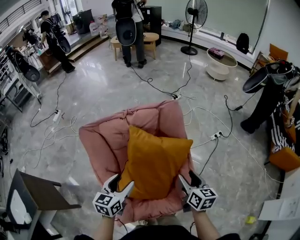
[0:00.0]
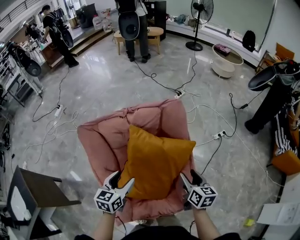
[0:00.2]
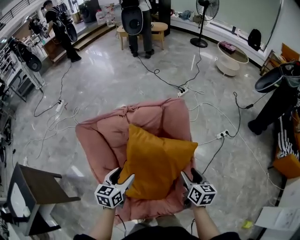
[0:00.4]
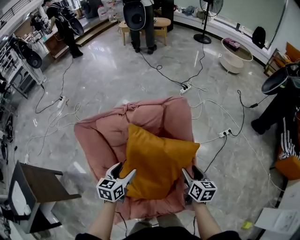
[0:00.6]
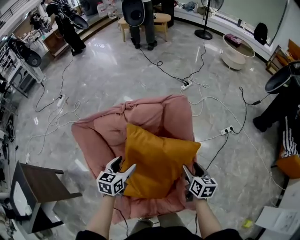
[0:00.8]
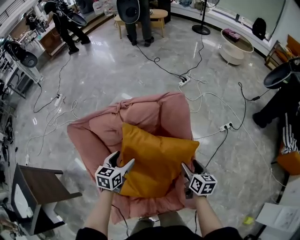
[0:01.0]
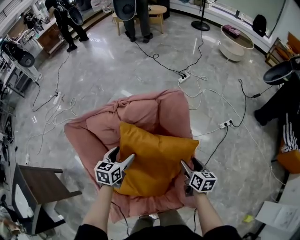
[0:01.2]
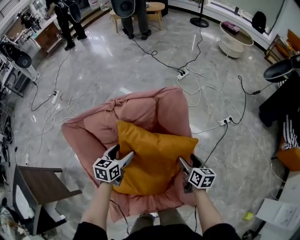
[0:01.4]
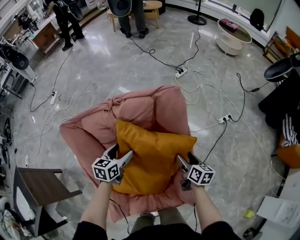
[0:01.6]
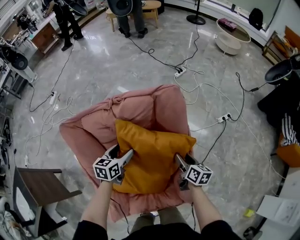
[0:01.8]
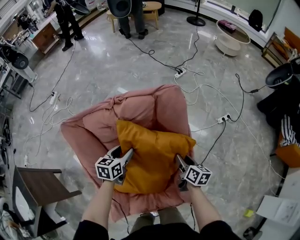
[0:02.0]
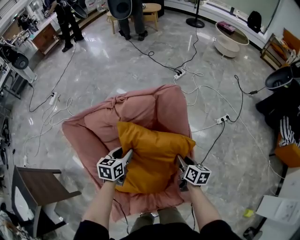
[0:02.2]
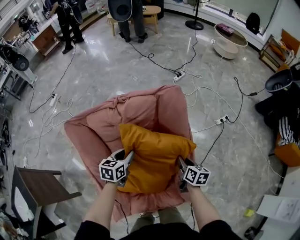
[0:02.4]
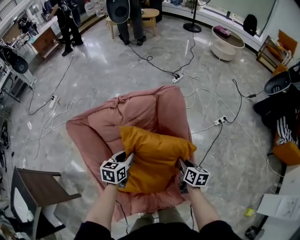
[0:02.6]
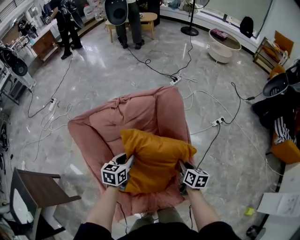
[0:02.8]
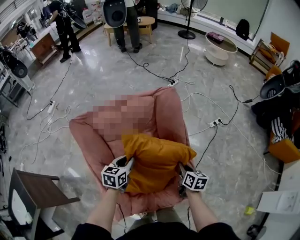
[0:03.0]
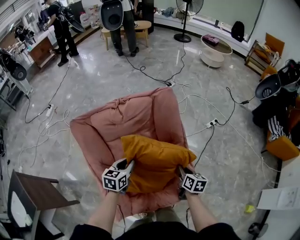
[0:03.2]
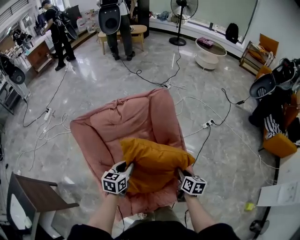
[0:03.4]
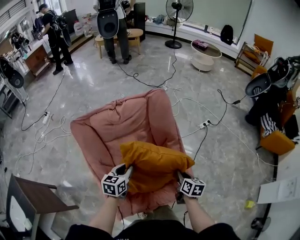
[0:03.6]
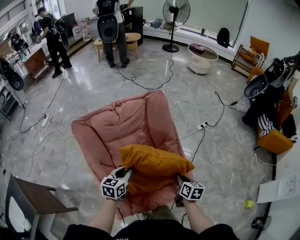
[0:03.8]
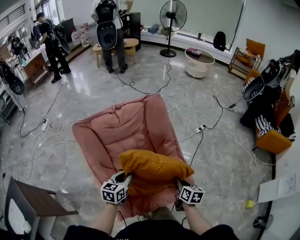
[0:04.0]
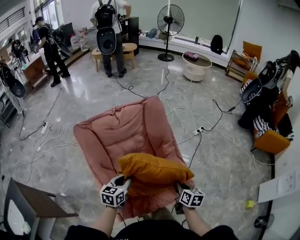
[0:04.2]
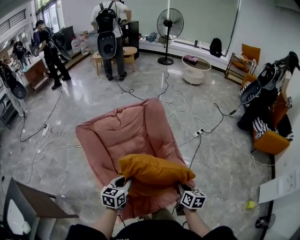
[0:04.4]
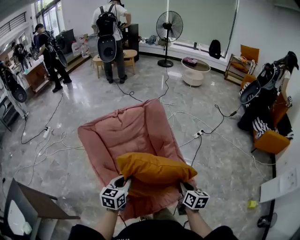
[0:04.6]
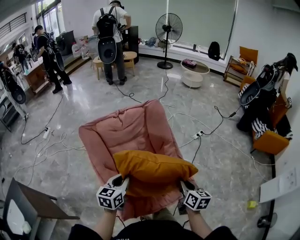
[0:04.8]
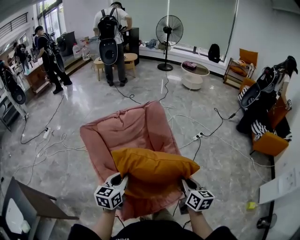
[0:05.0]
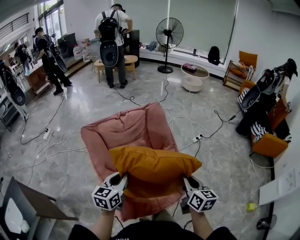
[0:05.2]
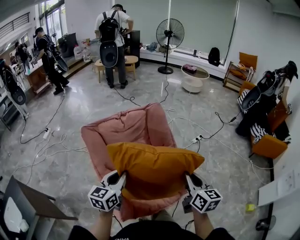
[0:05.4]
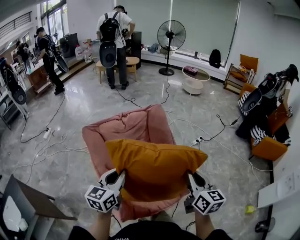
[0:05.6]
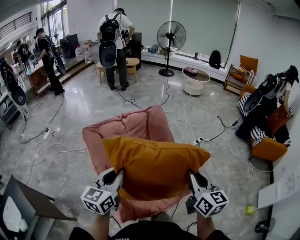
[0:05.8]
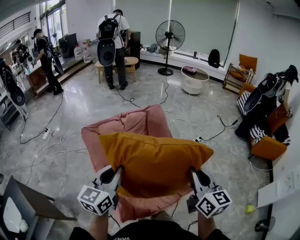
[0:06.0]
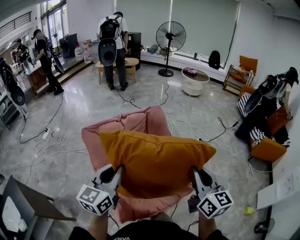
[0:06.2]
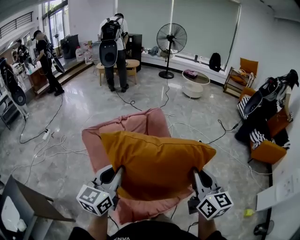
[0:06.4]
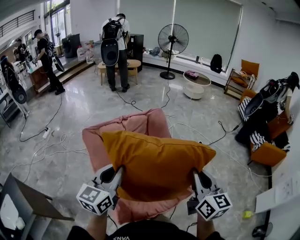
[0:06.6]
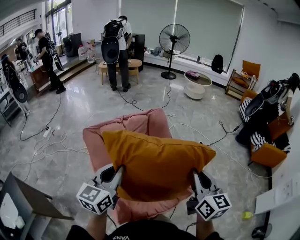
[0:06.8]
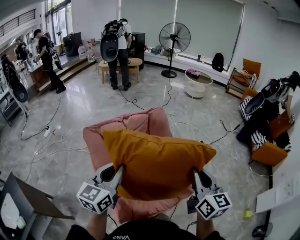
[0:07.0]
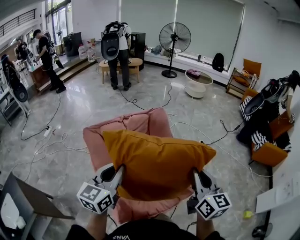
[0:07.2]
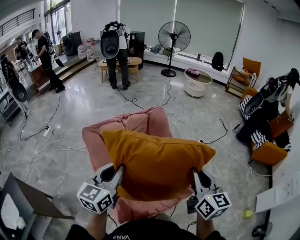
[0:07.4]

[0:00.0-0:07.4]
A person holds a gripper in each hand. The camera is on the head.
0:00.0 to 0:01.4: The right gripper heads downward and forward, covering roughly 20 cm, while the left gripper goes about 20 cm forward and downward.
0:01.4 to 0:03.0: Both grippers move backward, some 10 cm. The right gripper closes its fingers; the left gripper closes its fingers.
0:03.0 to 0:04.4: The right gripper goes about 20 cm backward. The left gripper travels backward and upward by about 20 cm.
0:04.4 to 0:06.0: Both grippers move upward, roughly 25 cm. The left gripper changes its angle by approximately 30 degrees, while the right gripper rotates roughly 40 degrees.
0:06.0 to 0:07.4: The grippers make only small movements.

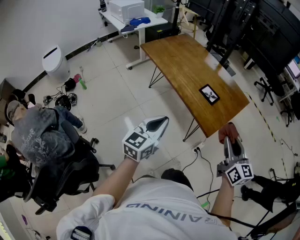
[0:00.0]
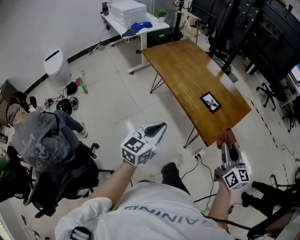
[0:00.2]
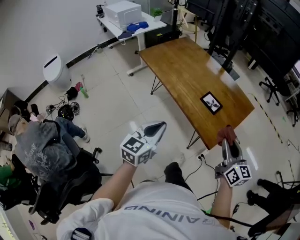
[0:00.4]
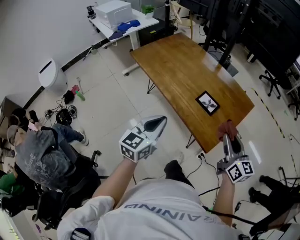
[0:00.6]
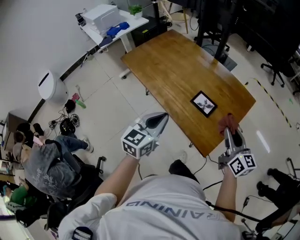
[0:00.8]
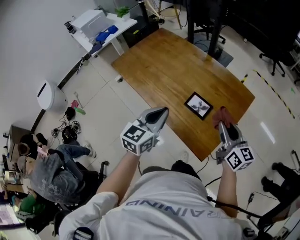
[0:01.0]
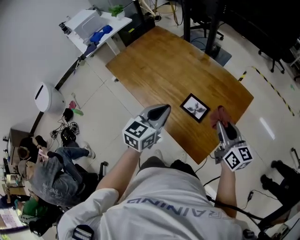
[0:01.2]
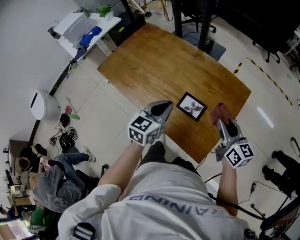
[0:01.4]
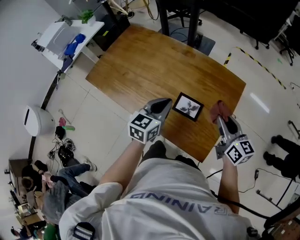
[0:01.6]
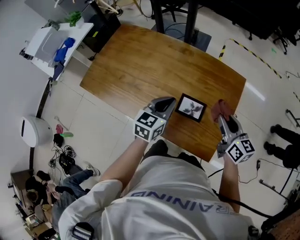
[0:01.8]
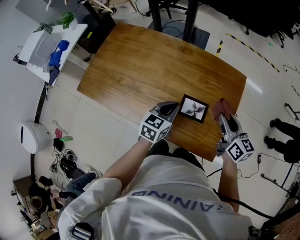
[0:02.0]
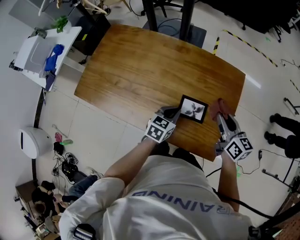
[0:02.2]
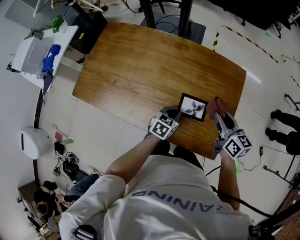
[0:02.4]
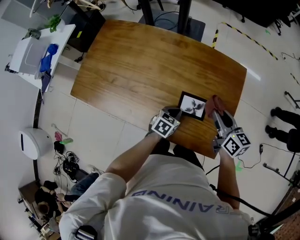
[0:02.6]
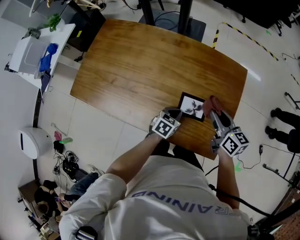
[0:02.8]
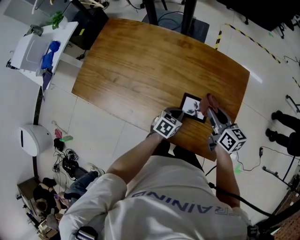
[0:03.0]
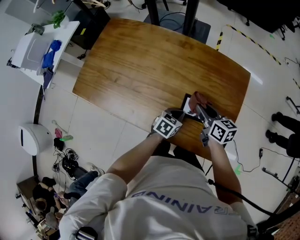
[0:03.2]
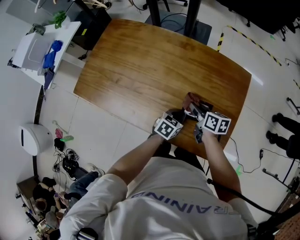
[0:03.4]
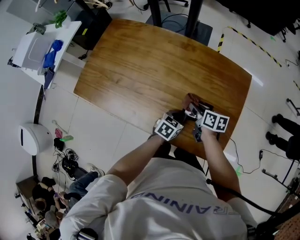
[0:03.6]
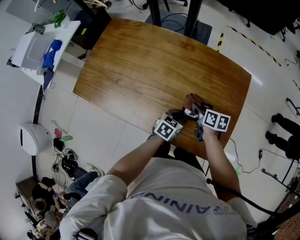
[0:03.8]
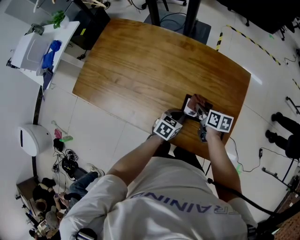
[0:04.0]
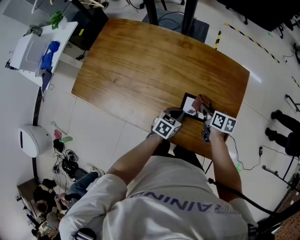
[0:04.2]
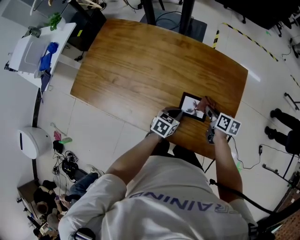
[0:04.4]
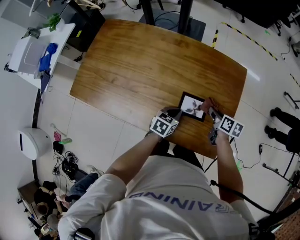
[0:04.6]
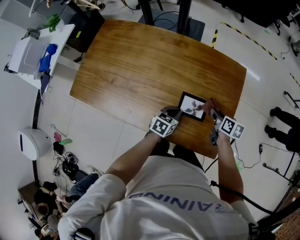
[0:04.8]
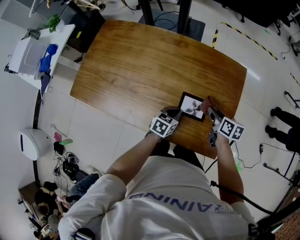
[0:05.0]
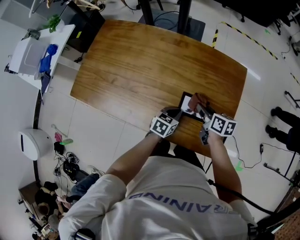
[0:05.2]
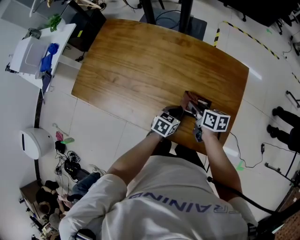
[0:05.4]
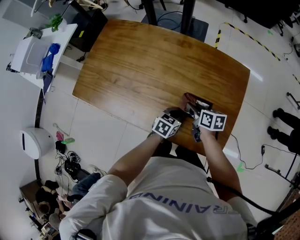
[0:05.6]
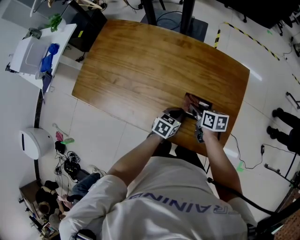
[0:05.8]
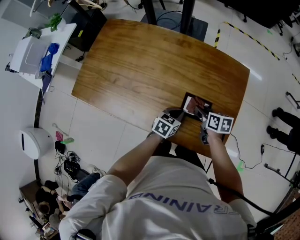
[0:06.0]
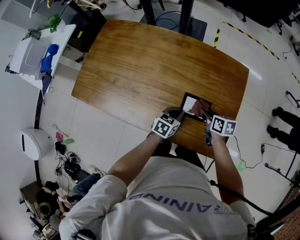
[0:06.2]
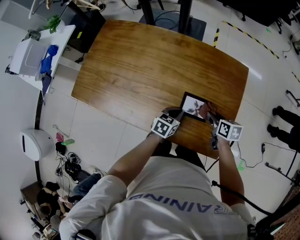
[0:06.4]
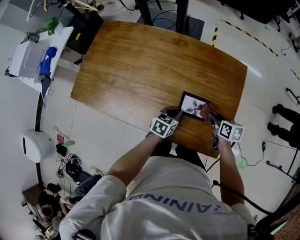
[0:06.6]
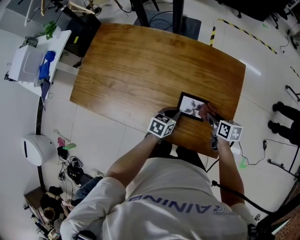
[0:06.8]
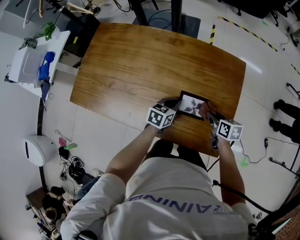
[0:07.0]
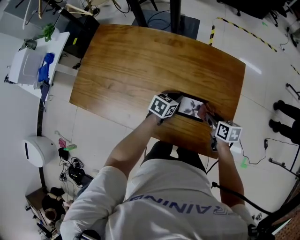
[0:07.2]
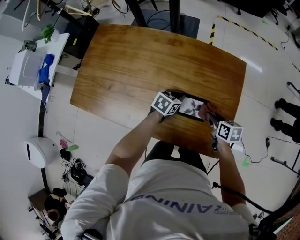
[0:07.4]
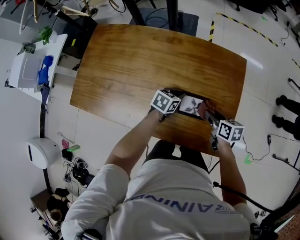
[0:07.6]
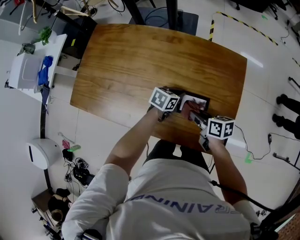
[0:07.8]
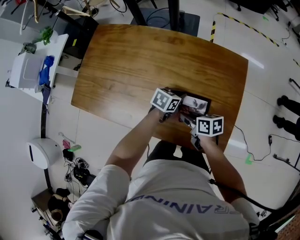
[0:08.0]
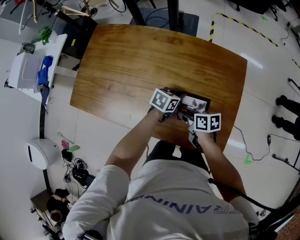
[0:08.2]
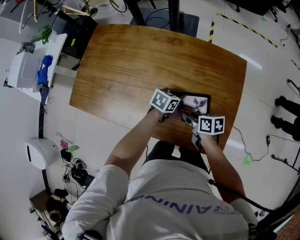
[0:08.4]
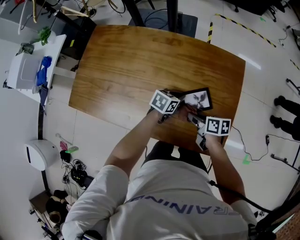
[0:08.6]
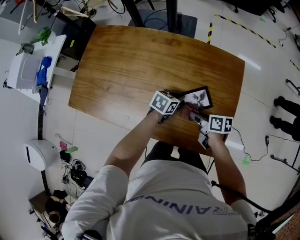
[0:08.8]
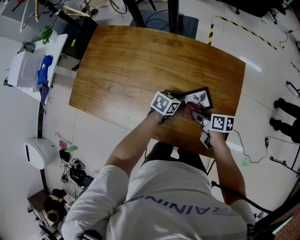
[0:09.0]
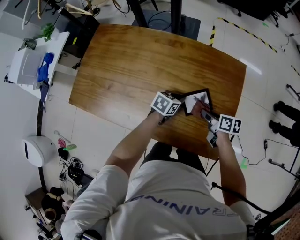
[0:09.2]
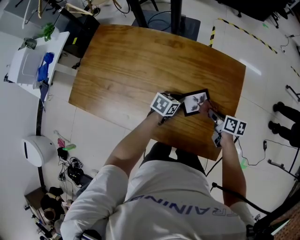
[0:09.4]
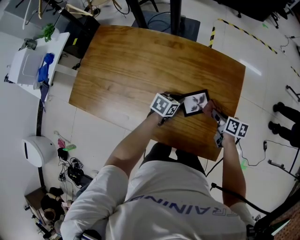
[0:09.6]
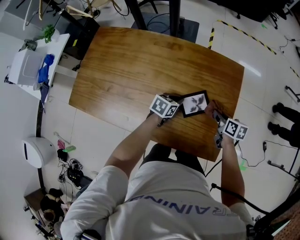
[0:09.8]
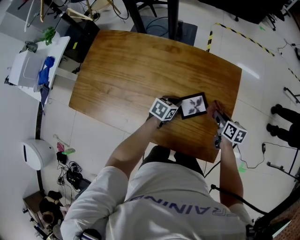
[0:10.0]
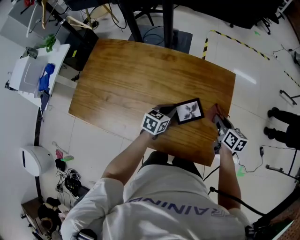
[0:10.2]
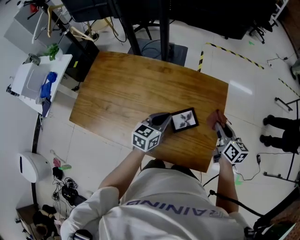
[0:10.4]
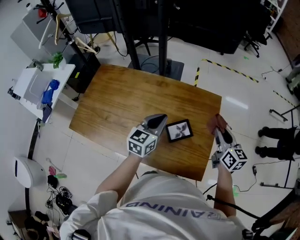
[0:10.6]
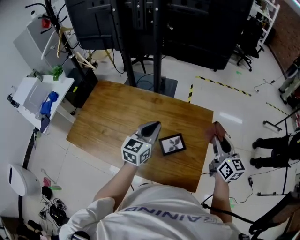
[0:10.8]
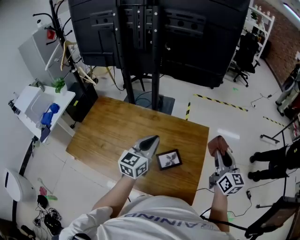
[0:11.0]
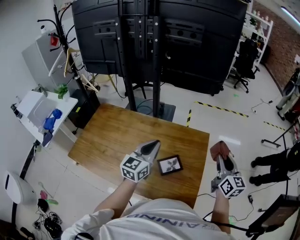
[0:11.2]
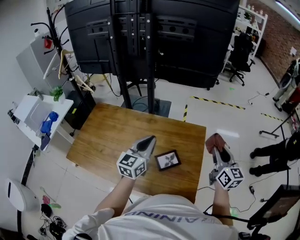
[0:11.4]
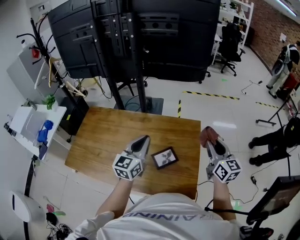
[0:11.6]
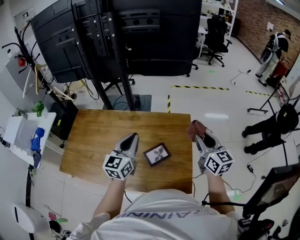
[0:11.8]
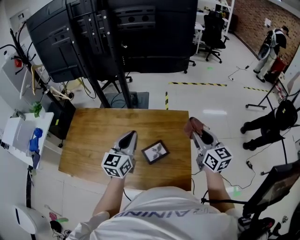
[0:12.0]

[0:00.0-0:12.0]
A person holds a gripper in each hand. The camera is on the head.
0:00.0 to 0:01.6: The two grippers go some 35 cm forward. The left gripper rotates approximately 30 degrees.
0:01.6 to 0:03.0: The right gripper travels downward, to the left and forward by about 15 cm, while the left gripper moves downward, about 20 cm, and changes its angle by approximately 40 degrees.
0:03.0 to 0:04.4: The right gripper is displaced downward by some 10 cm, and swivels about 30 degrees.
0:04.4 to 0:06.0: The right gripper goes approximately 5 cm to the left.
0:06.0 to 0:07.6: The right gripper is displaced to the right by roughly 5 cm, while the left gripper goes some 10 cm forward.
0:07.6 to 0:09.0: The right gripper moves to the left, roughly 5 cm.
0:09.0 to 0:10.4: The right gripper is displaced upward and to the right by roughly 20 cm, and swivels some 40 degrees, while the left gripper travels upward by some 15 cm, and swivels approximately 30 degrees.
0:10.4 to 0:12.0: Both grippers move upward, roughly 15 cm. The right gripper turns by about 20 degrees. Meanwhile the left gripper turns by approximately 20 degrees.

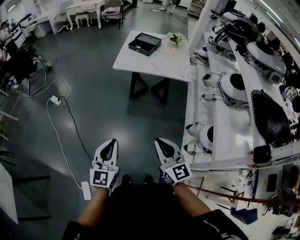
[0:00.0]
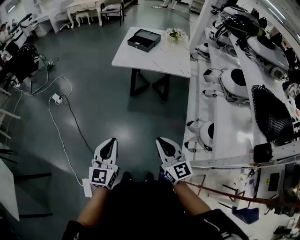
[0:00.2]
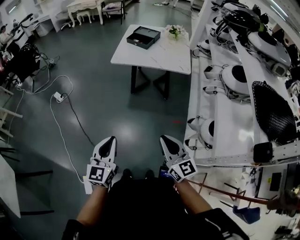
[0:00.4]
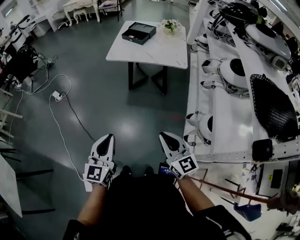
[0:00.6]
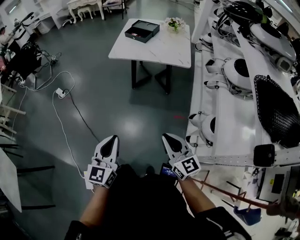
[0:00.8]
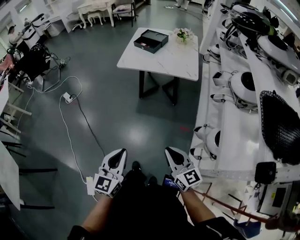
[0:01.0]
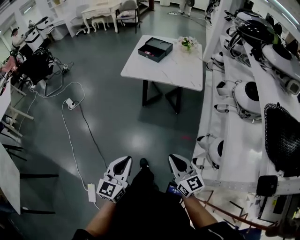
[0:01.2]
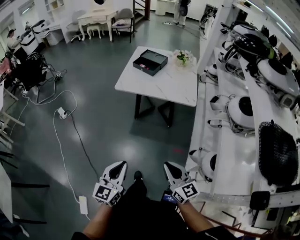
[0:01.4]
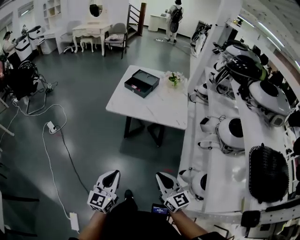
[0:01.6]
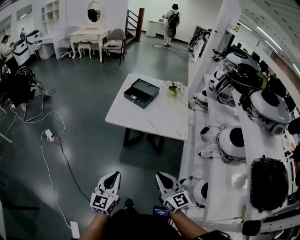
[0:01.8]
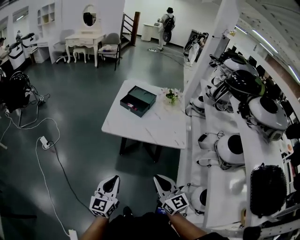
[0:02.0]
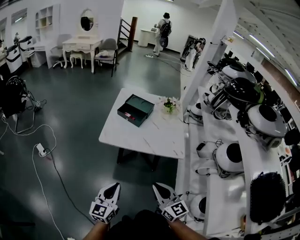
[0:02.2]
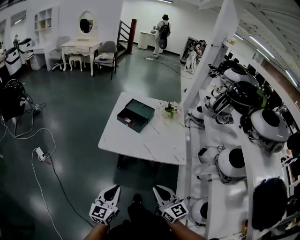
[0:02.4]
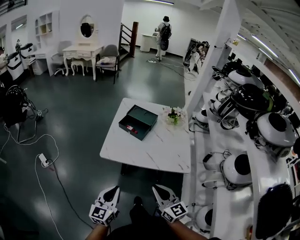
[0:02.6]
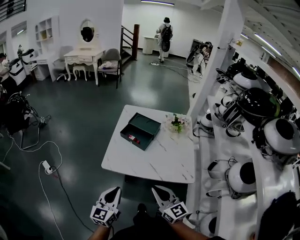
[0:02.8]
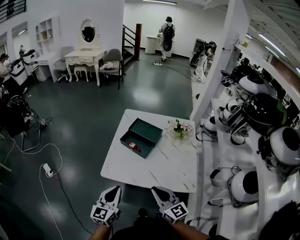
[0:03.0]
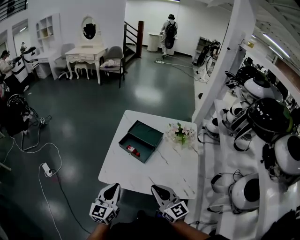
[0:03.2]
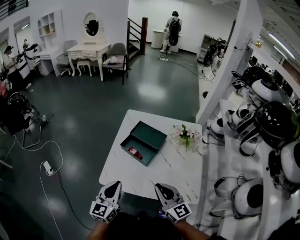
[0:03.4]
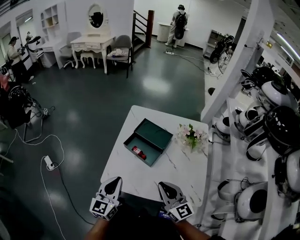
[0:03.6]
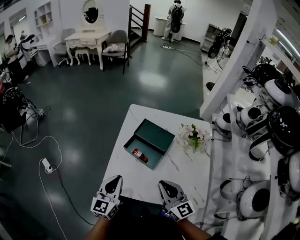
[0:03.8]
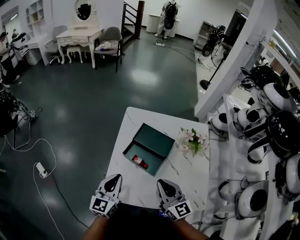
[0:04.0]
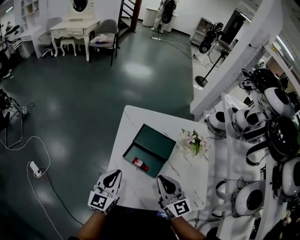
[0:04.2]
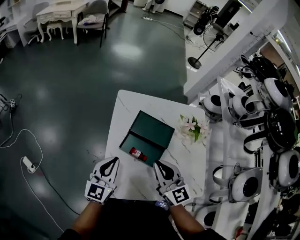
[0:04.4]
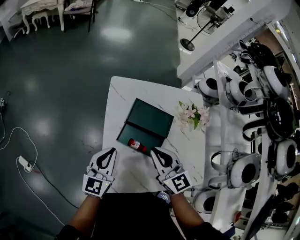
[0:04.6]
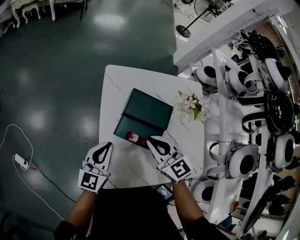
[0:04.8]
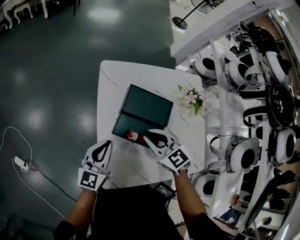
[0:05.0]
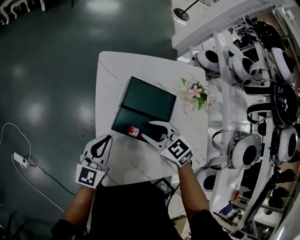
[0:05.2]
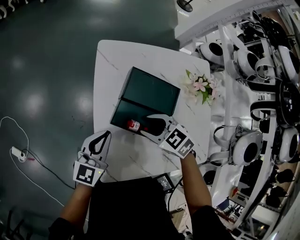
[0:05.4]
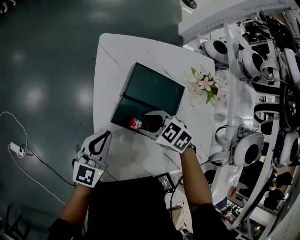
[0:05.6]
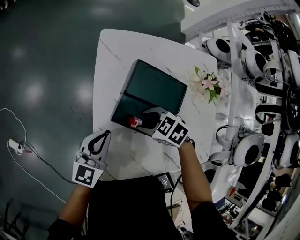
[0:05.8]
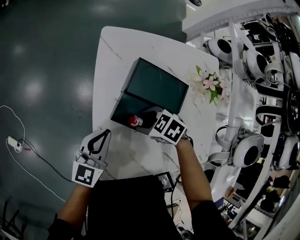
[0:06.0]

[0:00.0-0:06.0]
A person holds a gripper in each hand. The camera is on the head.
0:00.0 to 0:01.6: The grippers both shift forward and to the right by roughly 15 cm.
0:01.6 to 0:03.0: The two grippers go about 40 cm forward.
0:03.0 to 0:04.4: Both grippers move forward, approximately 30 cm.
0:04.4 to 0:06.0: The left gripper travels downward by some 10 cm, while the right gripper moves downward, roughly 25 cm, tilts its fingers roughly 60 degrees downward, and opens.
